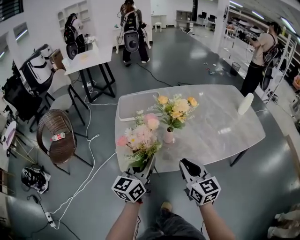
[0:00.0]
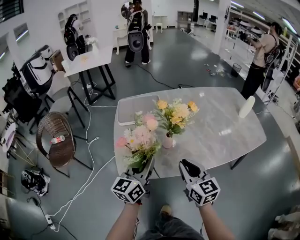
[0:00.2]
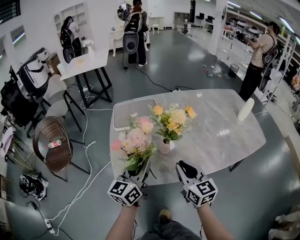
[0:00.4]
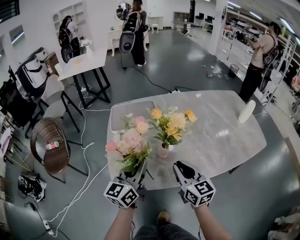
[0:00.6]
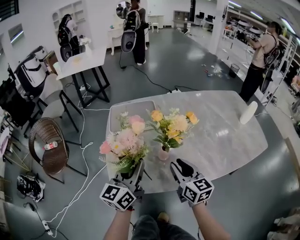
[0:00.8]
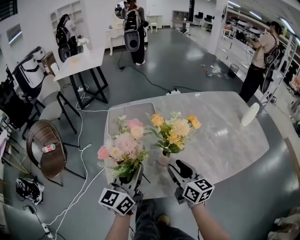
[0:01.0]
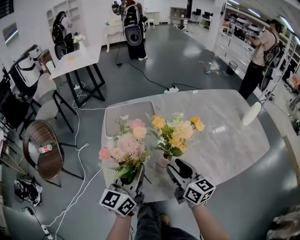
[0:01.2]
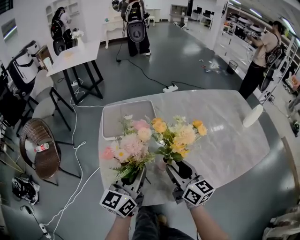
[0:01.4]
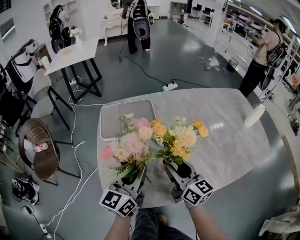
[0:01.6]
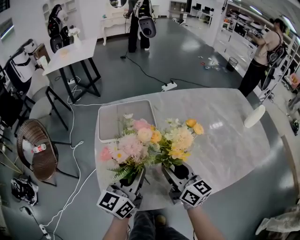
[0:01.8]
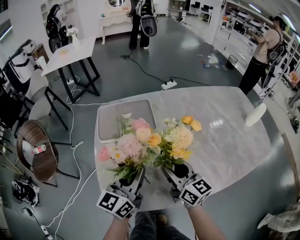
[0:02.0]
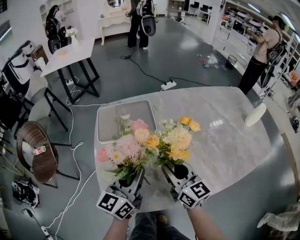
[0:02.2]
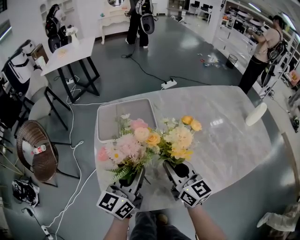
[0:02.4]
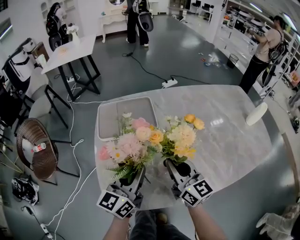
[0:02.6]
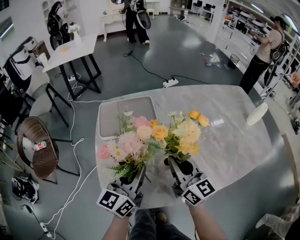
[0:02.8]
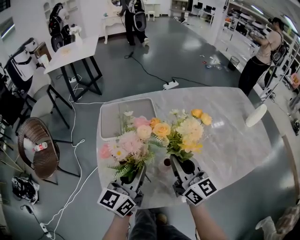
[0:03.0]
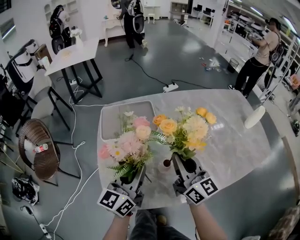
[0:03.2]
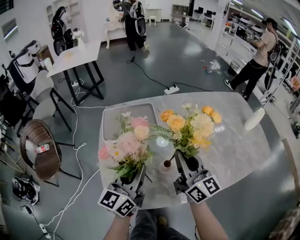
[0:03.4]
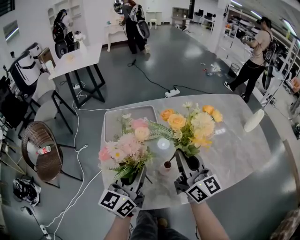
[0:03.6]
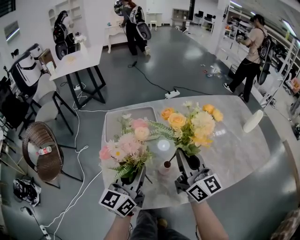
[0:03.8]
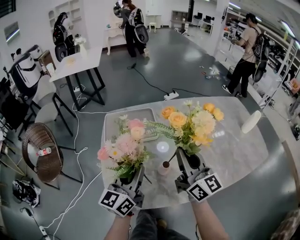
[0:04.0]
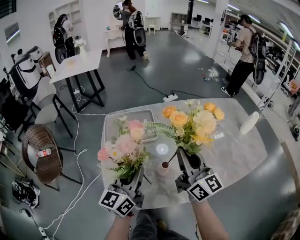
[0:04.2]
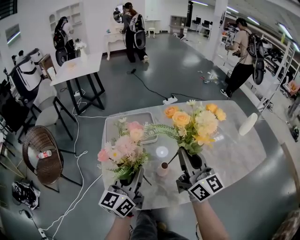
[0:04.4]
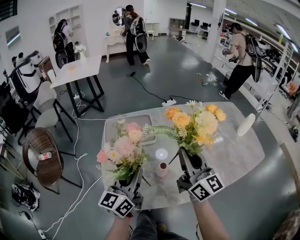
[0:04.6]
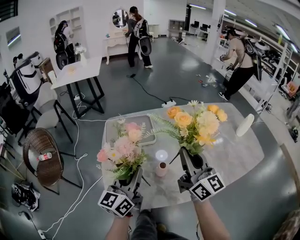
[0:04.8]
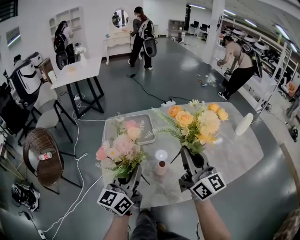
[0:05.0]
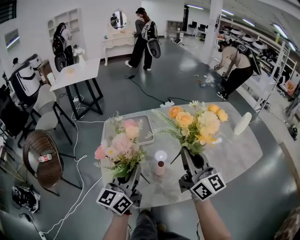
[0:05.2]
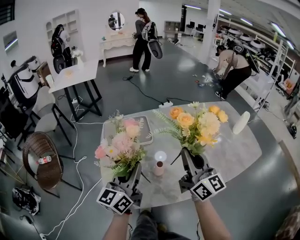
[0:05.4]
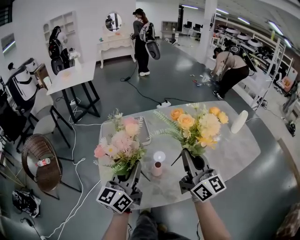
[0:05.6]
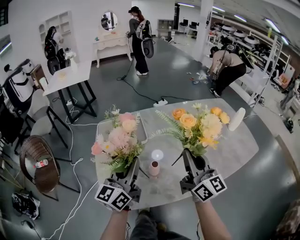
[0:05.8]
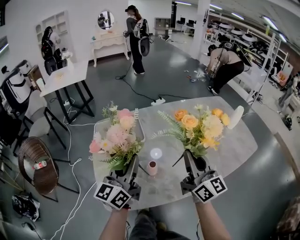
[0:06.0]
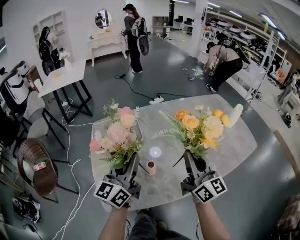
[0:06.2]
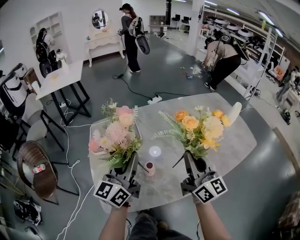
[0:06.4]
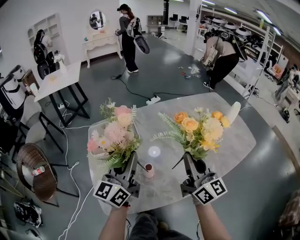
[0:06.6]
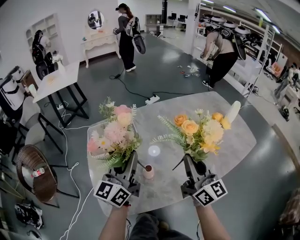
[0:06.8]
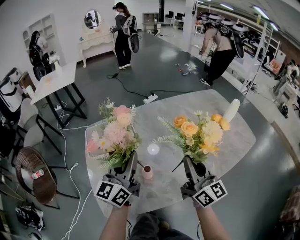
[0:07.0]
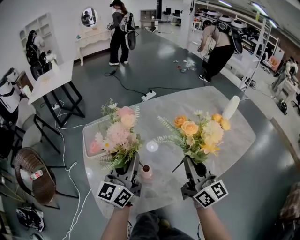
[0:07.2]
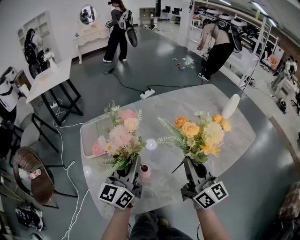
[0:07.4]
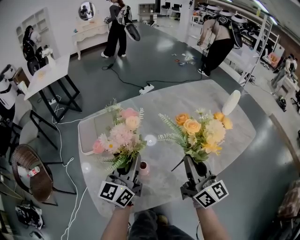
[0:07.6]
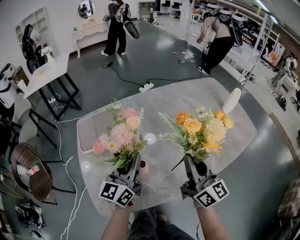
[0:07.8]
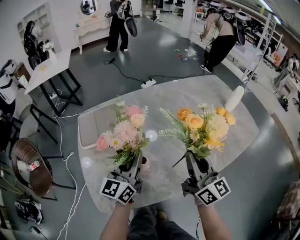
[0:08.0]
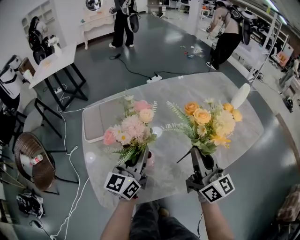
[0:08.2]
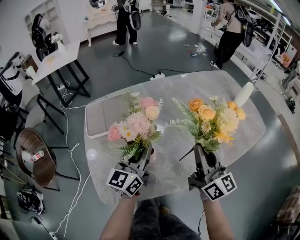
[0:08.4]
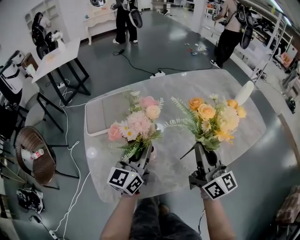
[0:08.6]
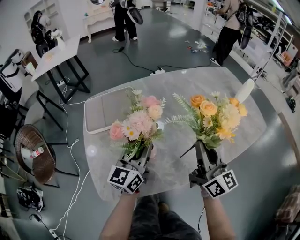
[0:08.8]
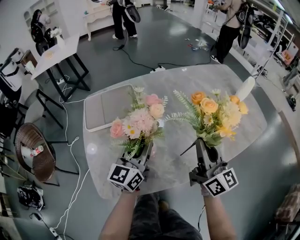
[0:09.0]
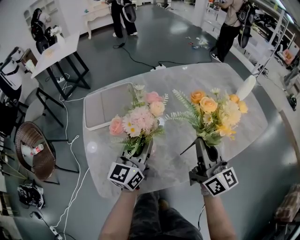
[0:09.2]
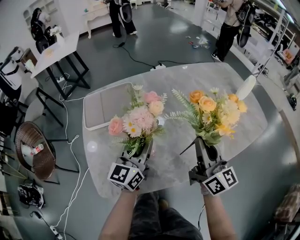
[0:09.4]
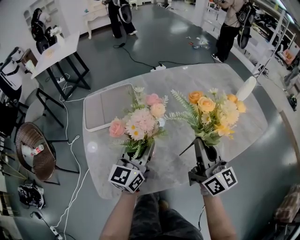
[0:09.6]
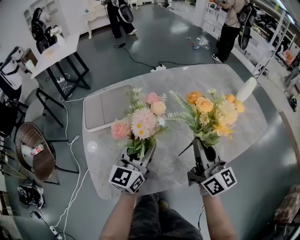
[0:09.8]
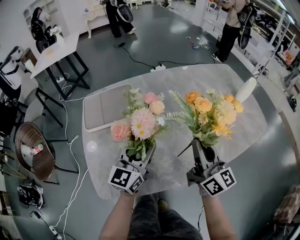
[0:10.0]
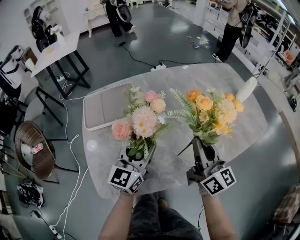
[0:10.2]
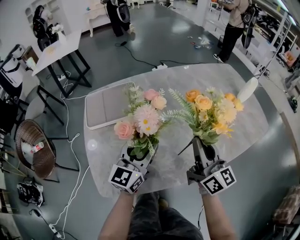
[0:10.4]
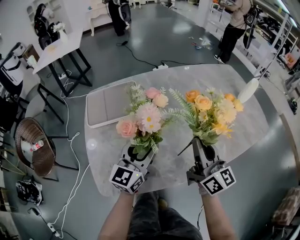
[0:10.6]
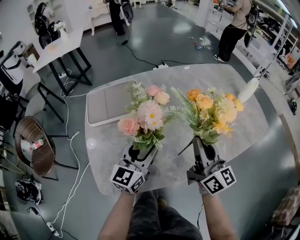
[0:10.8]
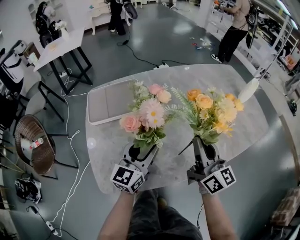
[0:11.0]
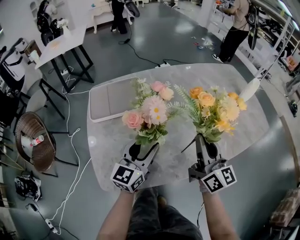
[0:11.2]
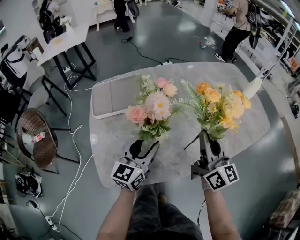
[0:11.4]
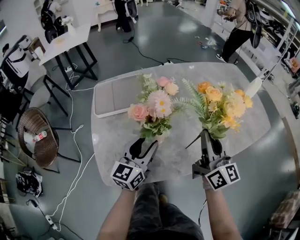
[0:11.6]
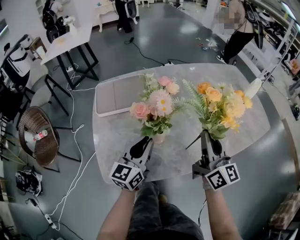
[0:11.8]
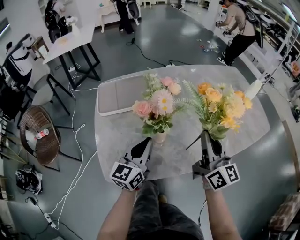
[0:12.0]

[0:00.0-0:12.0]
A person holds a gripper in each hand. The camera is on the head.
0:00.0 to 0:01.6: Both grippers travel together forward, roughly 15 cm. The right gripper turns by roughly 20 degrees, and opens its fingers.
0:01.6 to 0:03.0: The right gripper closes.
0:03.0 to 0:04.4: The right gripper heads upward and to the right, covering about 10 cm.
0:04.4 to 0:06.0: The left gripper moves about 5 cm. The right gripper heads to the right, covering some 5 cm.
0:06.0 to 0:07.6: The two grippers go roughly 5 cm downward.
0:07.6 to 0:09.0: There are only small adjustments of the grippers.
0:09.0 to 0:10.4: The left gripper opens.
0:10.4 to 0:12.0: The left gripper shifts by roughly 5 cm, and closes up.

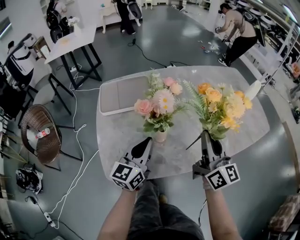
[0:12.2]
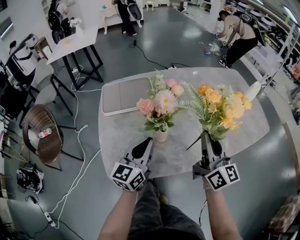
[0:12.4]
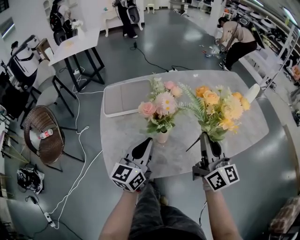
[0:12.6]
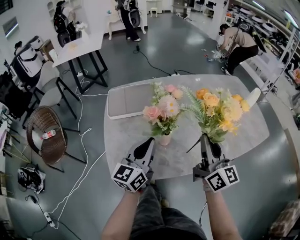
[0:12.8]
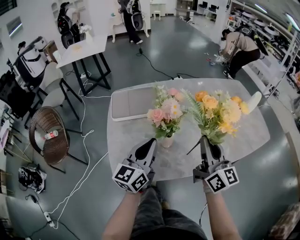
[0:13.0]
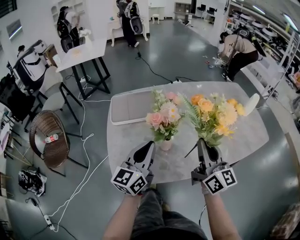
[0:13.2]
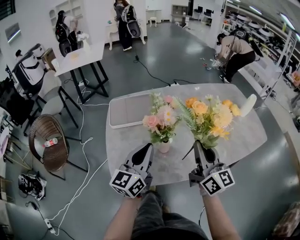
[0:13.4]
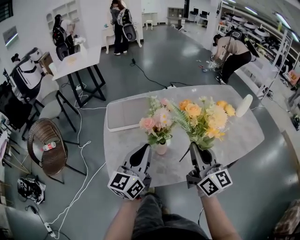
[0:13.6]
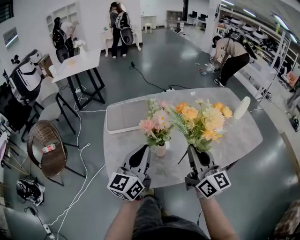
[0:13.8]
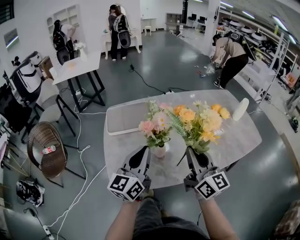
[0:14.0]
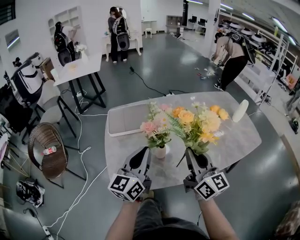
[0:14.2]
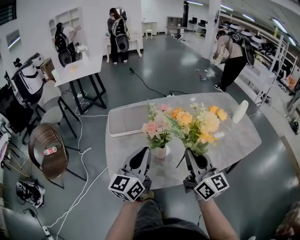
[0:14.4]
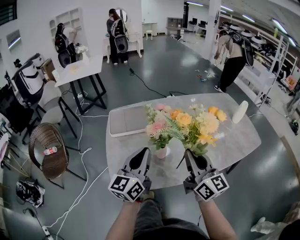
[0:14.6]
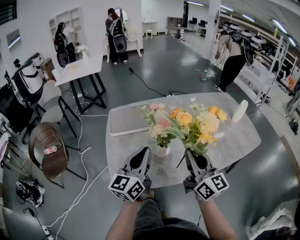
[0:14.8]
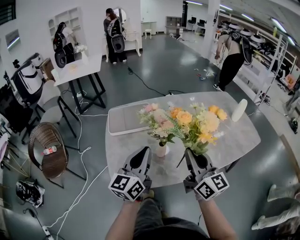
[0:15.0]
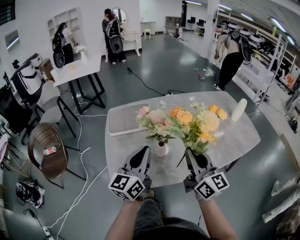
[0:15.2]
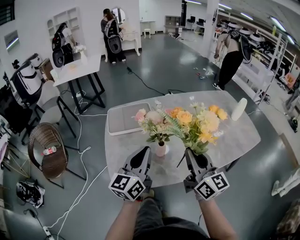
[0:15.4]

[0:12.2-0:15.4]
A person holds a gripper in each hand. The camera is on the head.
0:12.2 to 0:13.8: The right gripper changes place by approximately 5 cm, while the left gripper is displaced upward by approximately 10 cm.
0:13.8 to 0:15.4: The grippers make only small movements.

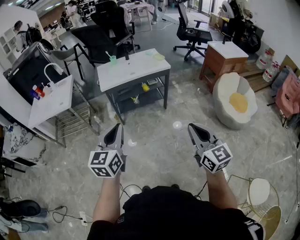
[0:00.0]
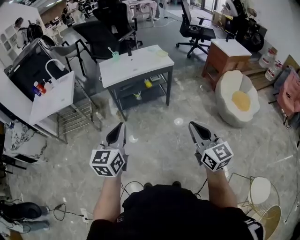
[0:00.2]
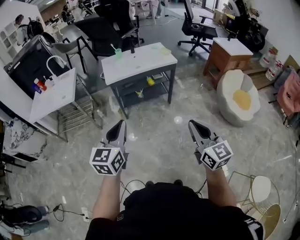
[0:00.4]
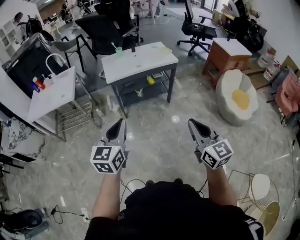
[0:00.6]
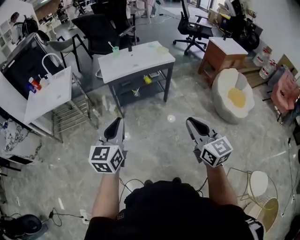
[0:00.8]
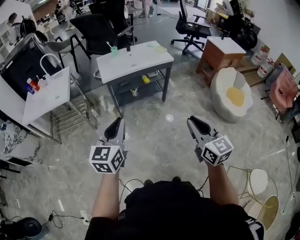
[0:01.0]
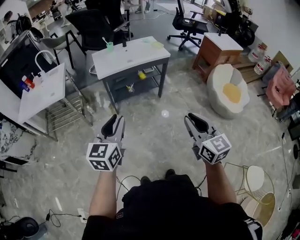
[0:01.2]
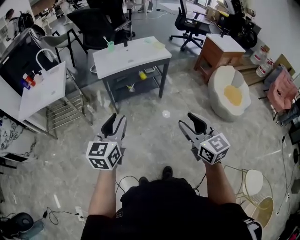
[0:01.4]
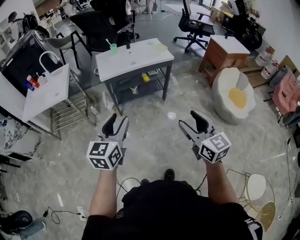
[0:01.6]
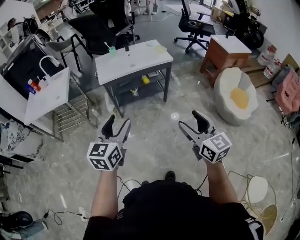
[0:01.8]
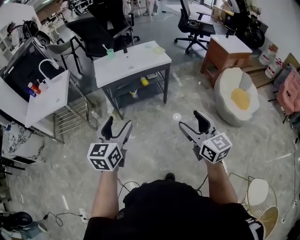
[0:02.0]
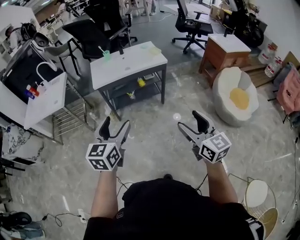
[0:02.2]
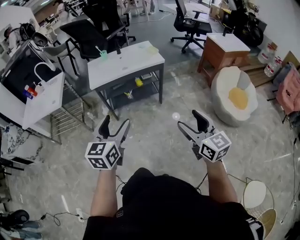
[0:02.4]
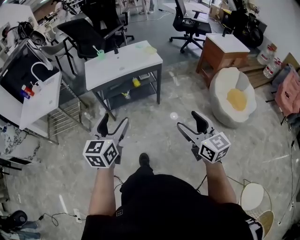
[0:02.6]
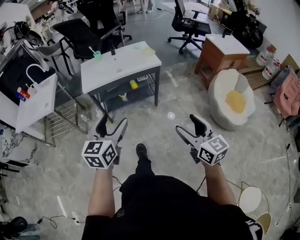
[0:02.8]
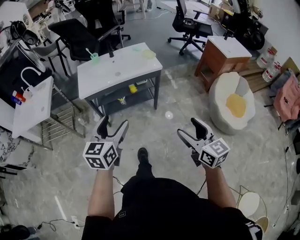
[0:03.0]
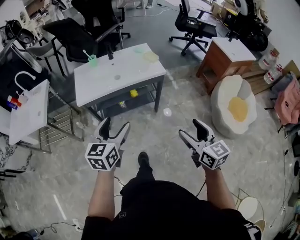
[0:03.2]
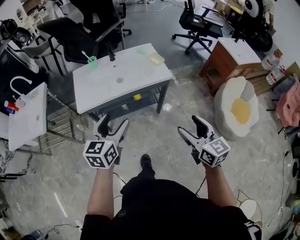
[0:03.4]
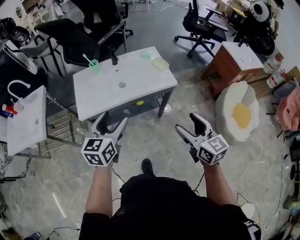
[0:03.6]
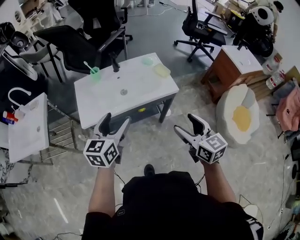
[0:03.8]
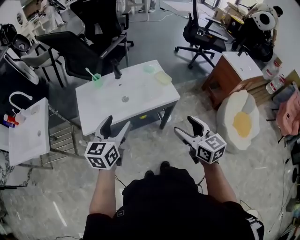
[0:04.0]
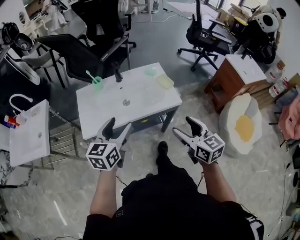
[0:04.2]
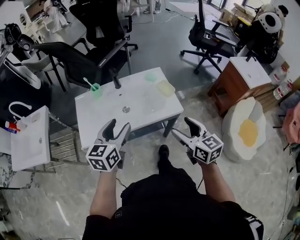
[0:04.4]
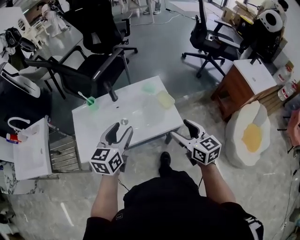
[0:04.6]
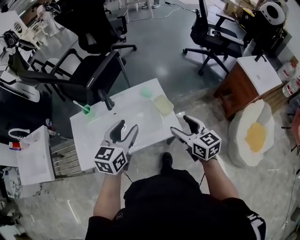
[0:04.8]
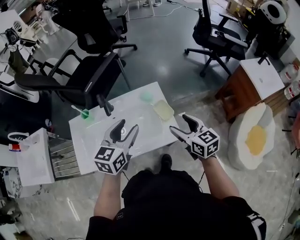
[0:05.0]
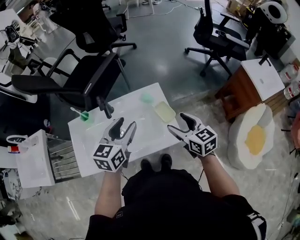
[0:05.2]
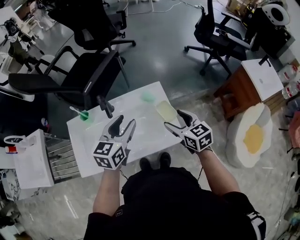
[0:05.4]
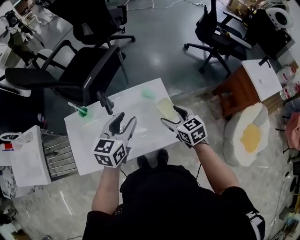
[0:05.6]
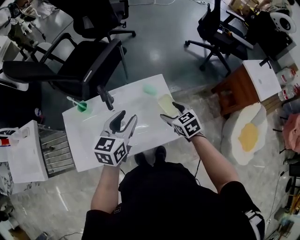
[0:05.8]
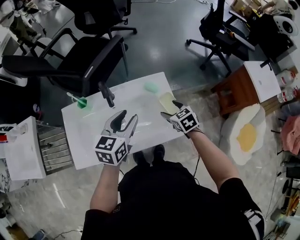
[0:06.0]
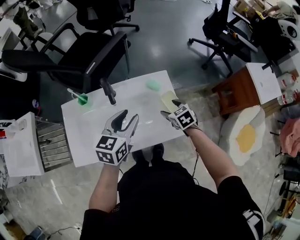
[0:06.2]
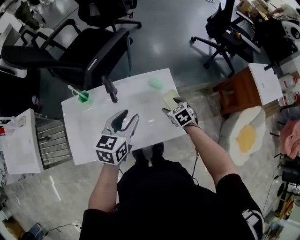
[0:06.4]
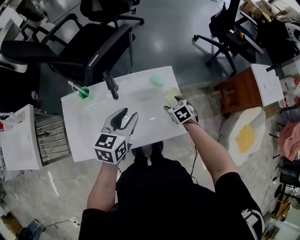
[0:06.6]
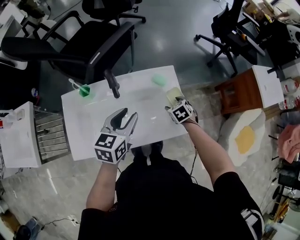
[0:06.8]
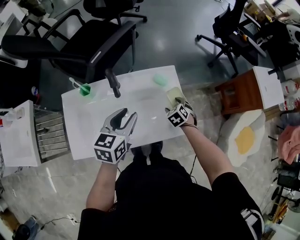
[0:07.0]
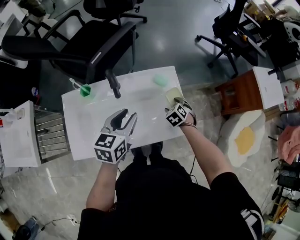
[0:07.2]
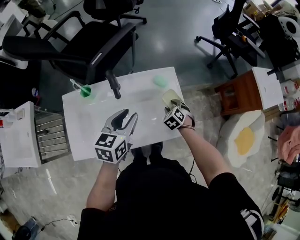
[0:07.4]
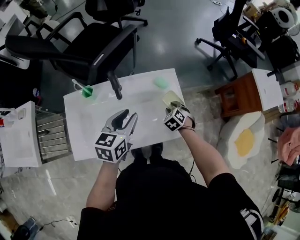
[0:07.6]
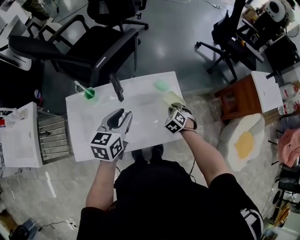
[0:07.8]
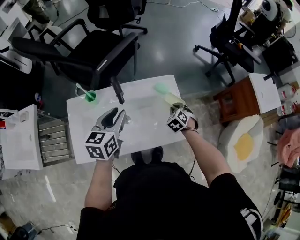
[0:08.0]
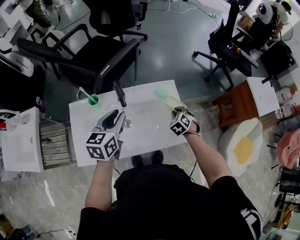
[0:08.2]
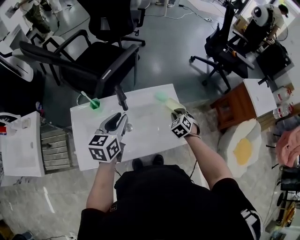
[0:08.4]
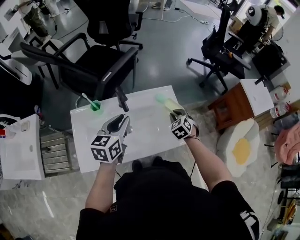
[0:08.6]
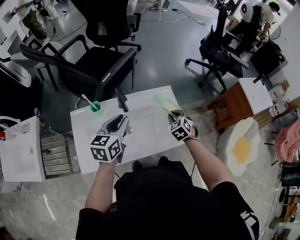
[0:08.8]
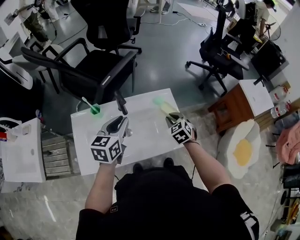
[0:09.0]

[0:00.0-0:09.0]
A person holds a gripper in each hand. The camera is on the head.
0:00.0 to 0:01.6: The left gripper shifts by roughly 5 cm, and opens its fingers; the right gripper goes roughly 5 cm to the left, and opens.
0:01.6 to 0:03.0: Both grippers travel together forward and to the right, some 20 cm. The left gripper opens its fingers.
0:03.0 to 0:04.4: The grippers both shift forward by roughly 40 cm.
0:04.4 to 0:06.0: The right gripper goes roughly 35 cm forward and downward, and angles its fingers downward, by approximately 30 degrees. The left gripper goes some 20 cm forward.
0:06.0 to 0:07.6: The right gripper is displaced downward by about 10 cm, rotates about 30 degrees, and closes its fingers.
0:07.6 to 0:09.0: The right gripper is displaced upward by about 15 cm; the left gripper heads to the left, covering some 5 cm.
